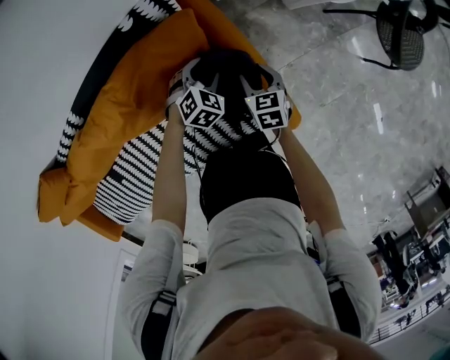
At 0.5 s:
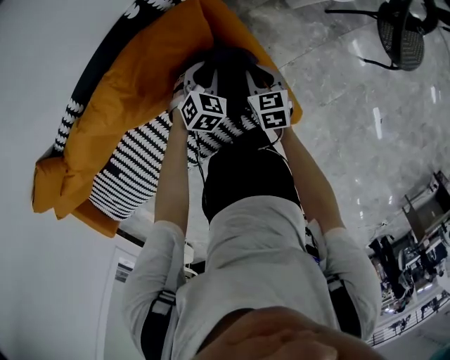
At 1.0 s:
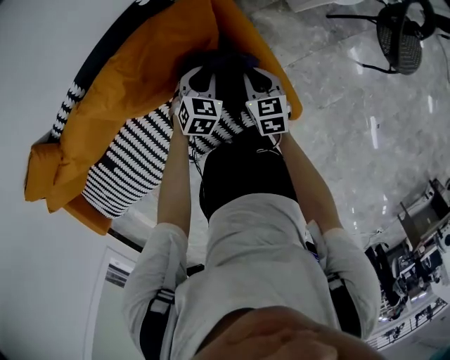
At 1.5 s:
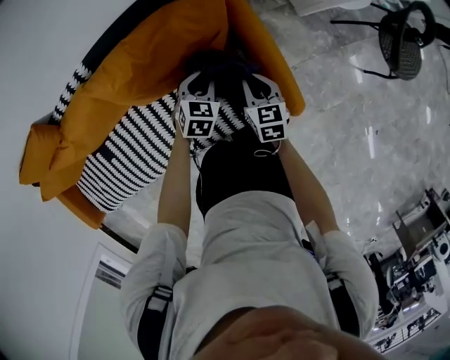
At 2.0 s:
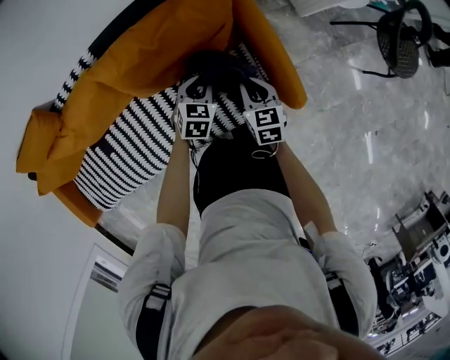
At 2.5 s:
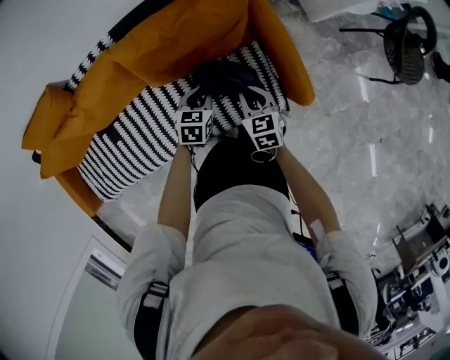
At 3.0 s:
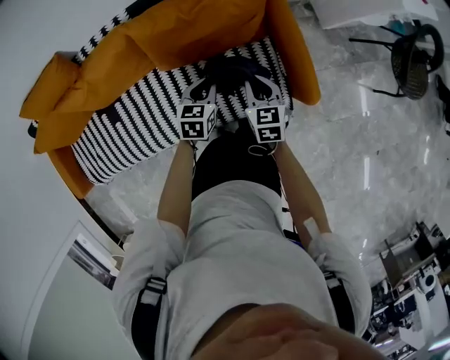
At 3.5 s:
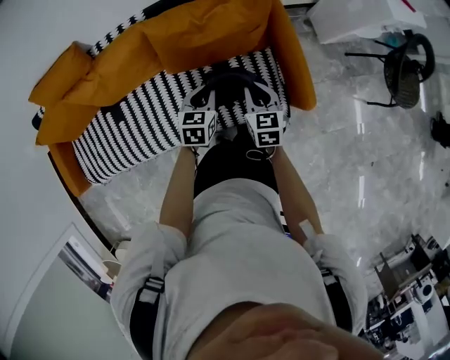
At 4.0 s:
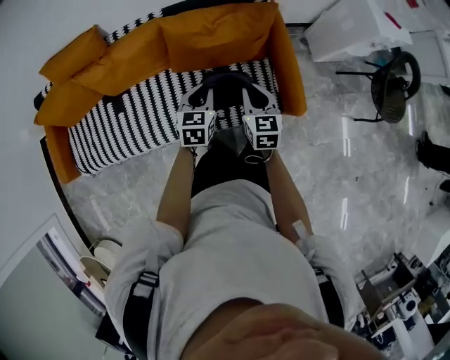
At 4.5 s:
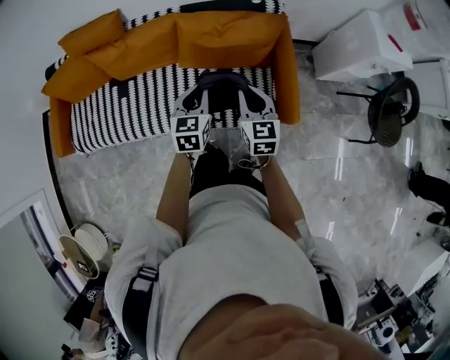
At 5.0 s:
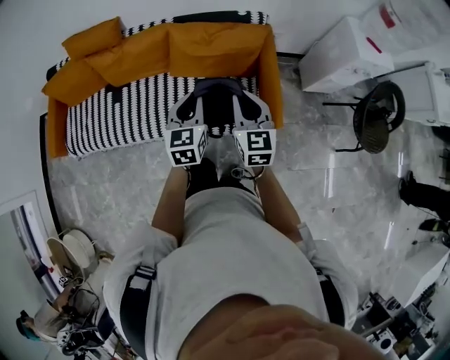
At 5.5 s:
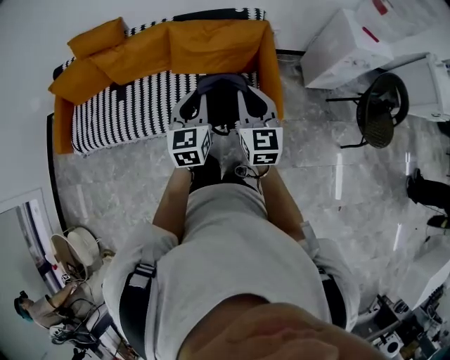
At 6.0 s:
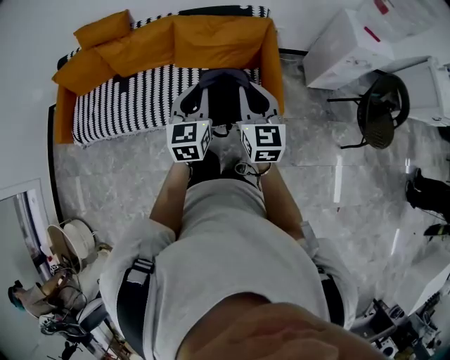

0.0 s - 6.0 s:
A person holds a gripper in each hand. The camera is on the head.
0.0 s - 2.0 s: The right gripper is displaced backward, upward and to the left by some 20 cm, and closes its fingers, while the left gripper travels backward, to the left and upward by approximately 20 cm, rotates roughly 30 degrees, and closes its fingers.
2.0 s - 4.0 s: The grippers both shift upward, backward and to the left by roughly 25 cm. The left gripper rotates roughly 30 degrees.
4.0 s - 6.0 s: The left gripper goes roughly 30 cm backward, upward and to the right, and turns by some 20 degrees. Meanwhile the right gripper heads upward, backward and to the right, covering about 25 cm, and turns by roughly 20 degrees.

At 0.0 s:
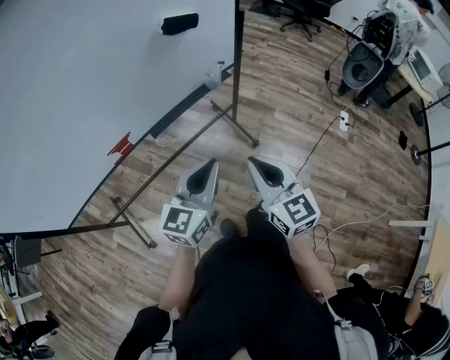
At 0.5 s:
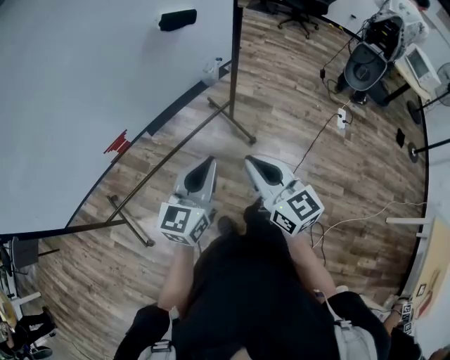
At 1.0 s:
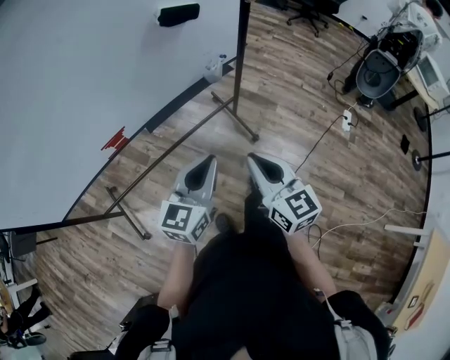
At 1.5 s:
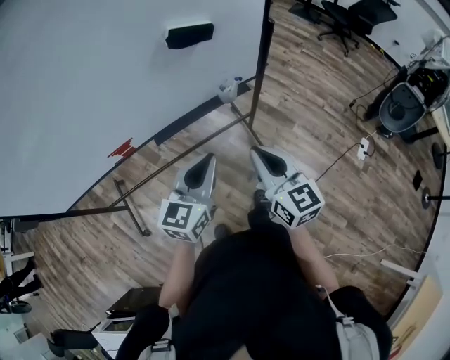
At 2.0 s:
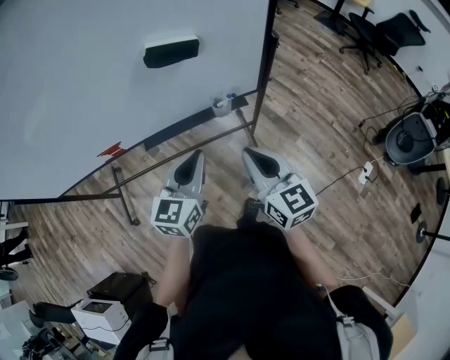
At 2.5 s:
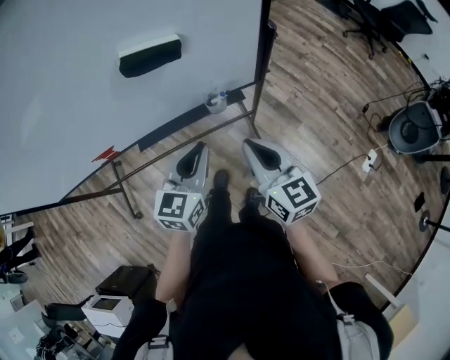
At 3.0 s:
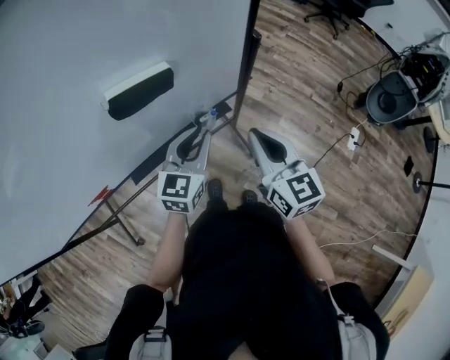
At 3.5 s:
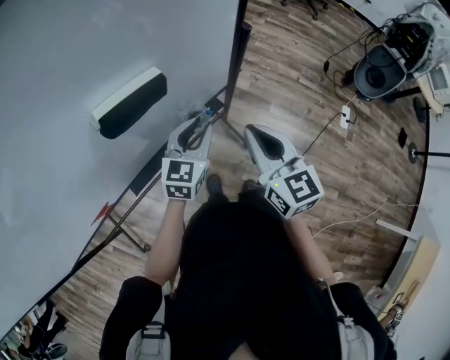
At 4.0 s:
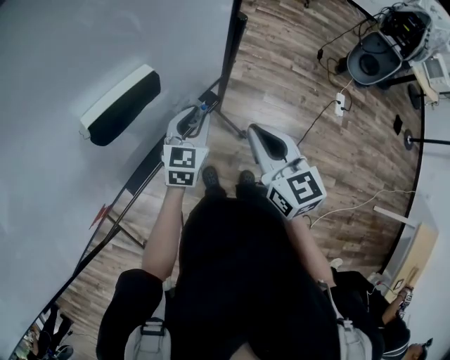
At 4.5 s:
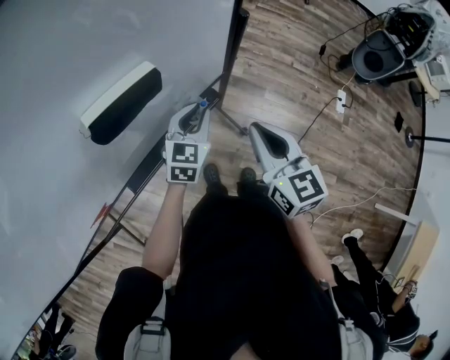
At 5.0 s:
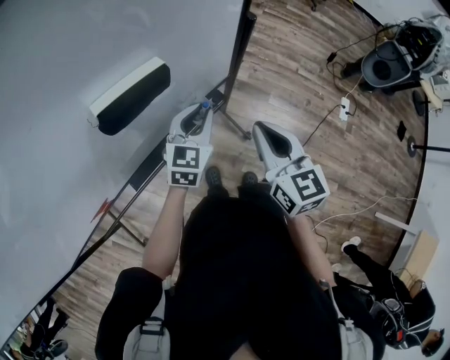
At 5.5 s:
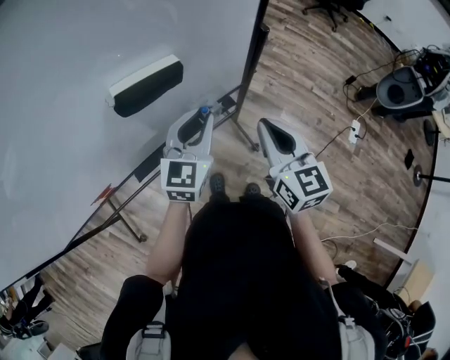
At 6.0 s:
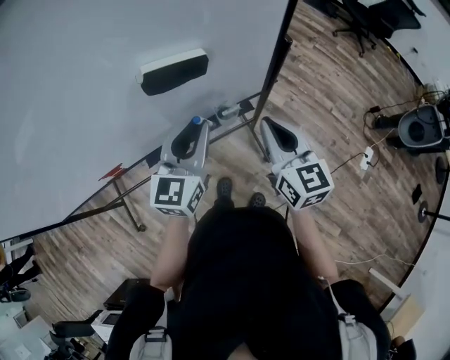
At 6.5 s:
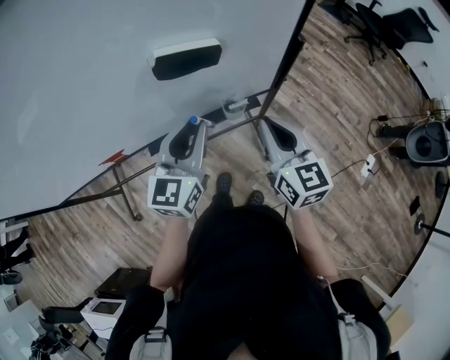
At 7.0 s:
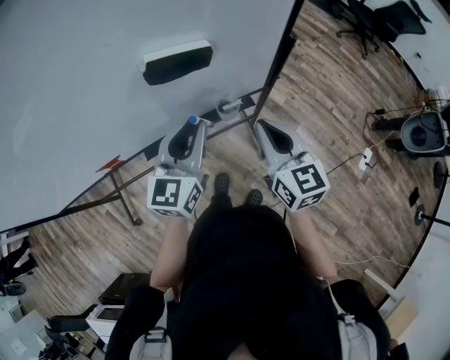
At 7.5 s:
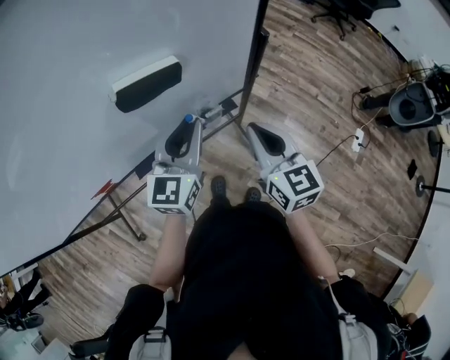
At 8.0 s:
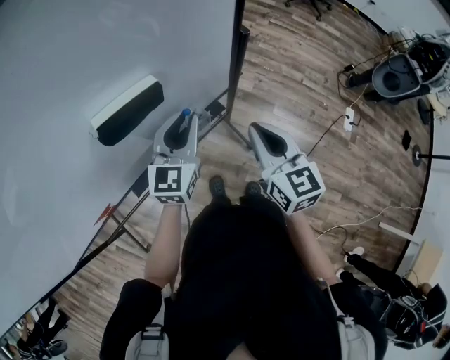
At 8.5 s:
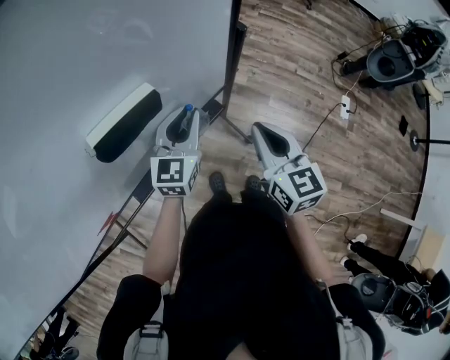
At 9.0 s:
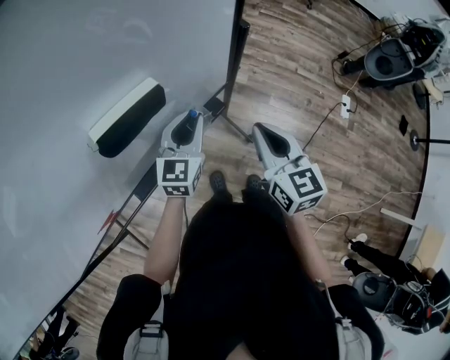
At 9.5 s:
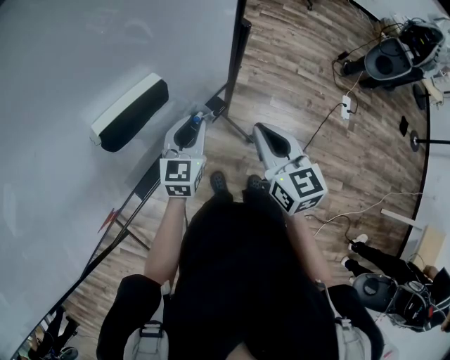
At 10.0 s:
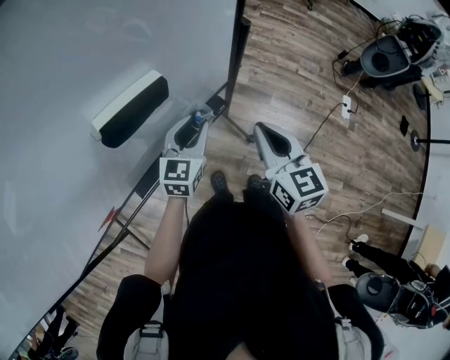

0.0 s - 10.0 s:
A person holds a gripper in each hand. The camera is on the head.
0.0 s - 2.0 s: The left gripper moves forward, approximately 20 cm, and changes its angle by some 30 degrees. Meanwhile the right gripper heads forward and to the right, covering about 25 cm, and changes its angle by some 20 degrees.
2.0 s - 4.0 s: The left gripper shifts by roughly 25 cm, changes its angle by some 30 degrees, and opens its fingers. The right gripper shifts by roughly 10 cm, and rotates roughly 30 degrees.
4.0 s - 6.0 s: The left gripper heads upward, backward and to the left, covering some 20 cm, and swivels roughly 30 degrees.
6.0 s - 8.0 s: The left gripper shifts some 10 cm forward and downward.
8.0 s - 10.0 s: The left gripper shifts roughly 10 cm downward.

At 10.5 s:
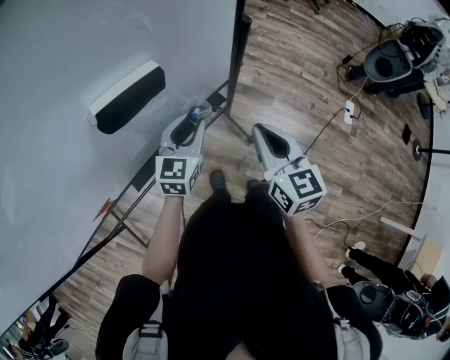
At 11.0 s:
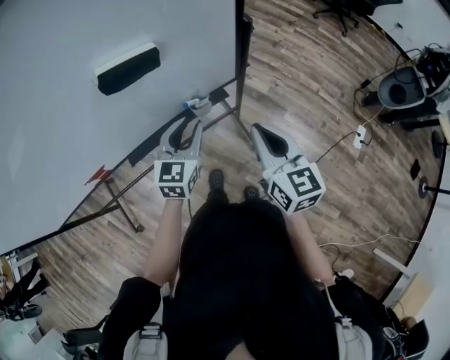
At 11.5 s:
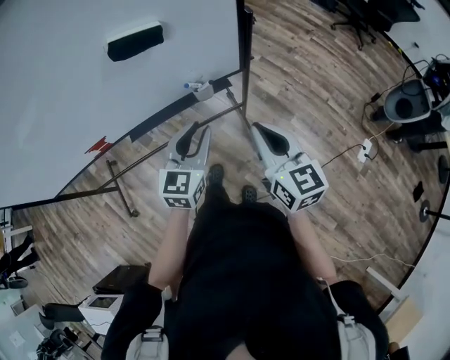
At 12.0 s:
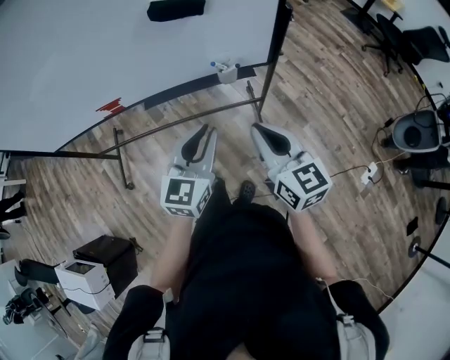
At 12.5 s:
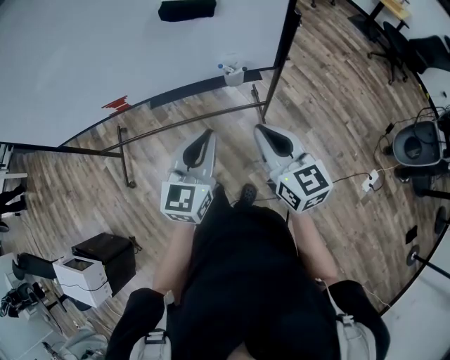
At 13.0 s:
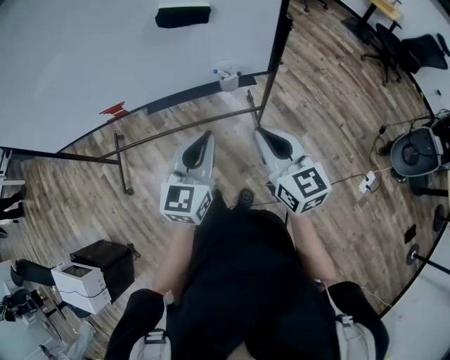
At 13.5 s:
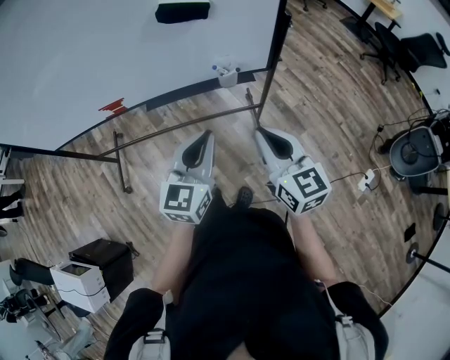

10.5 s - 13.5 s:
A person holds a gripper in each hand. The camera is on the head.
10.5 s - 12.0 s: The right gripper moves some 15 cm, and turns by roughly 40 degrees. The left gripper shifts by approximately 25 cm, and changes its angle by about 30 degrees.
12.0 s - 13.5 s: The grippers stay close to where they were, moving slightly.

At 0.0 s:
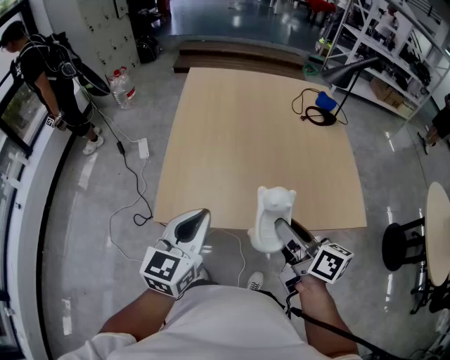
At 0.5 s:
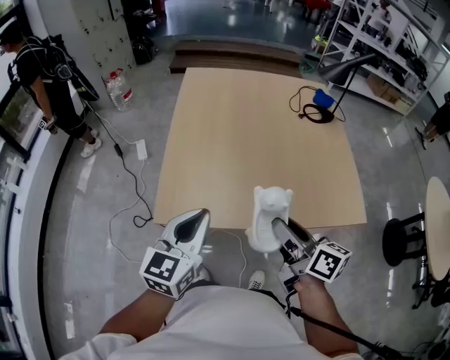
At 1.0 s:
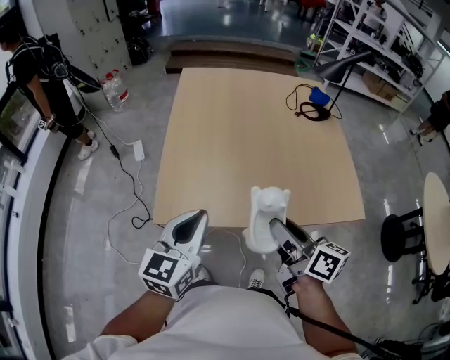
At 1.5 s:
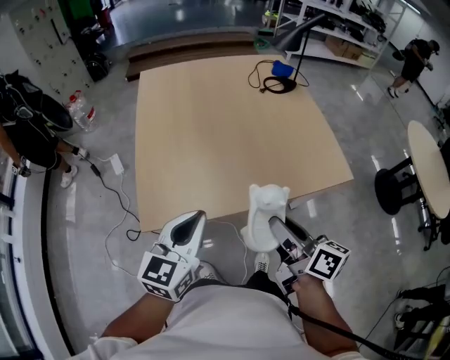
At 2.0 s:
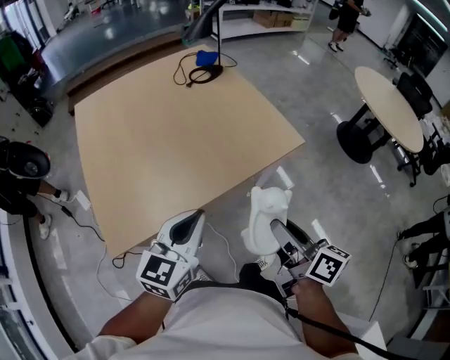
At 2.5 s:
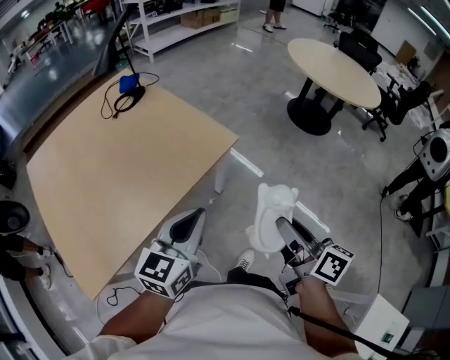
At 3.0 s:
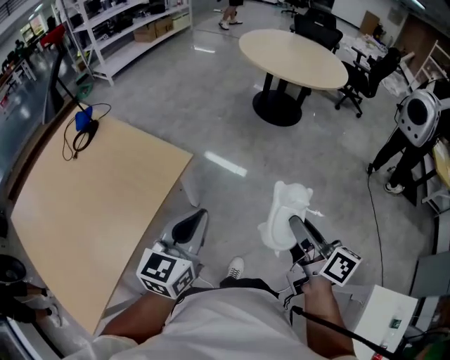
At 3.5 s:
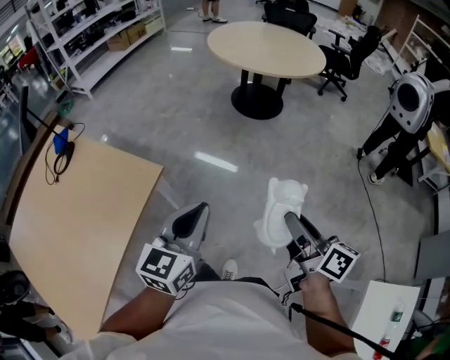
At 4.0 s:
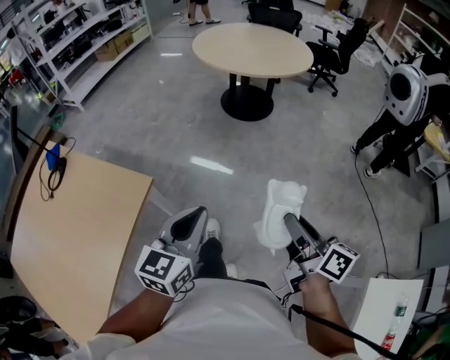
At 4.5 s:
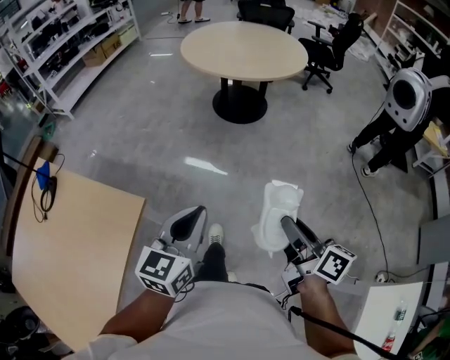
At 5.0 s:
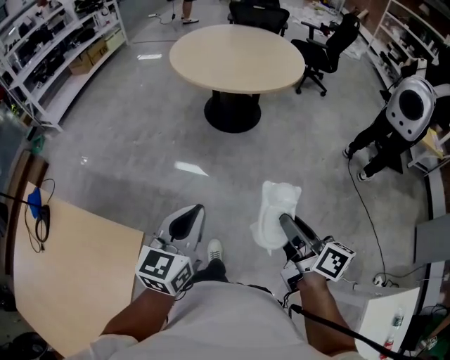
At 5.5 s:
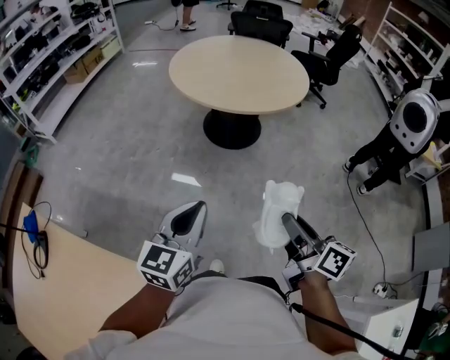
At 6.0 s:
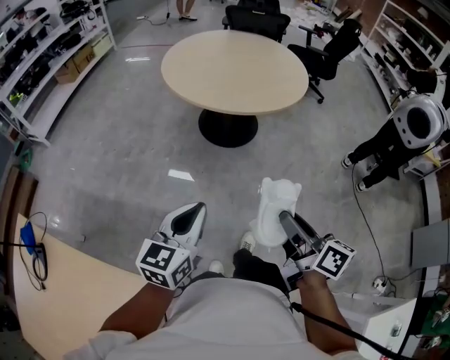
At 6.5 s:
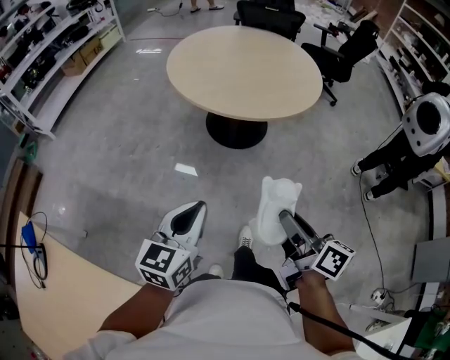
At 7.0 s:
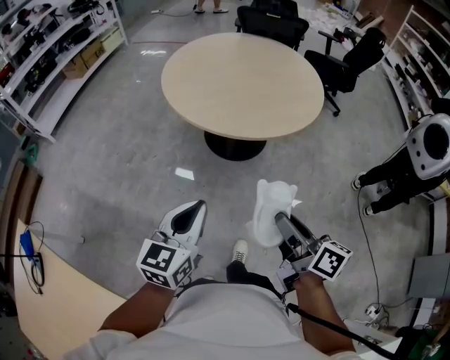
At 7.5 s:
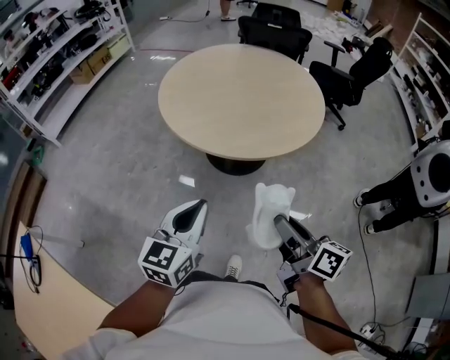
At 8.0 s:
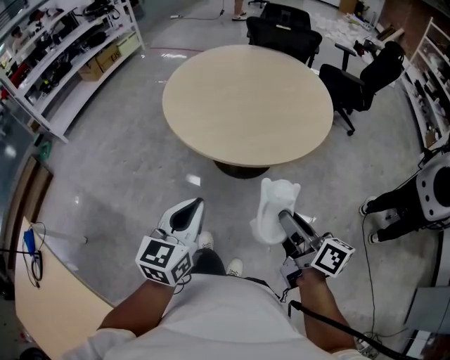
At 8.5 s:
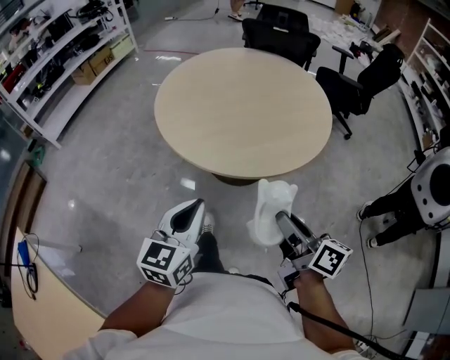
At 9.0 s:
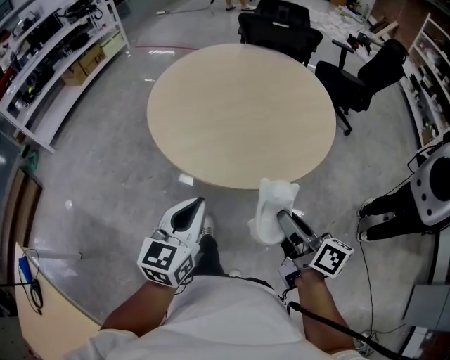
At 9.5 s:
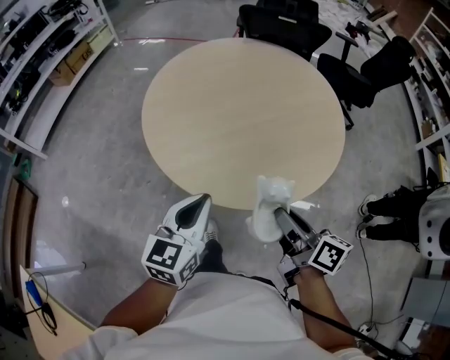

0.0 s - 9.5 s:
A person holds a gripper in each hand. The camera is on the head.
0.0 s - 2.0 s: The right gripper changes place by about 20 cm, and changes its angle by about 30 degrees, while the left gripper shifts by some 15 cm, and swivels roughly 30 degrees.
2.0 s - 4.0 s: The pair of grippers is taken roughly 40 cm. The right gripper swivels about 40 degrees, while the left gripper rotates some 40 degrees.
4.0 s - 5.5 s: Both grippers move forward, about 30 cm.
5.5 s - 7.5 s: The left gripper moves forward and to the right, about 25 cm. The right gripper goes some 25 cm forward.
7.5 s - 9.5 s: Both grippers travel together forward, approximately 25 cm.
